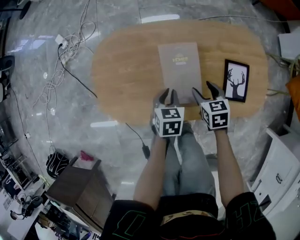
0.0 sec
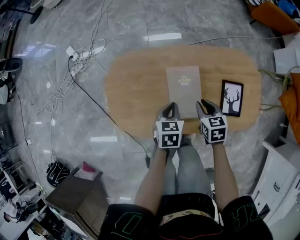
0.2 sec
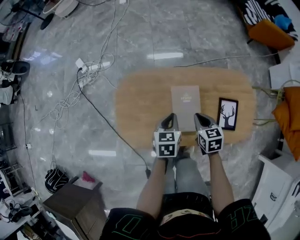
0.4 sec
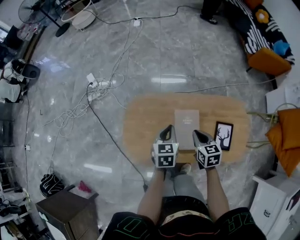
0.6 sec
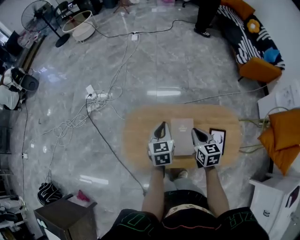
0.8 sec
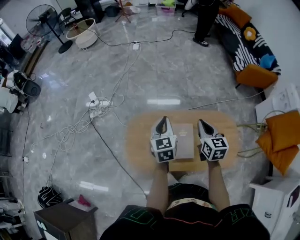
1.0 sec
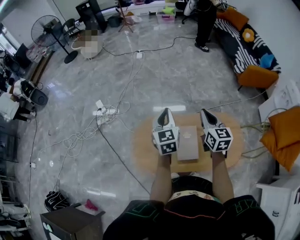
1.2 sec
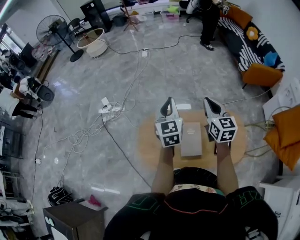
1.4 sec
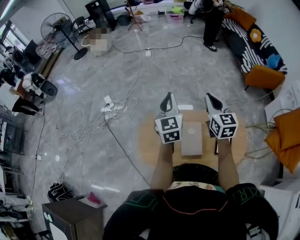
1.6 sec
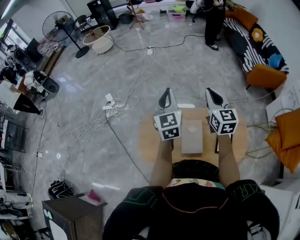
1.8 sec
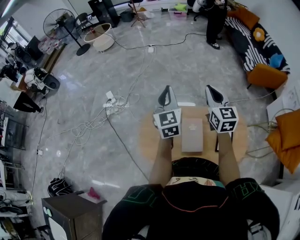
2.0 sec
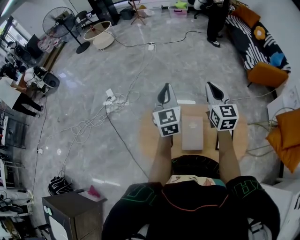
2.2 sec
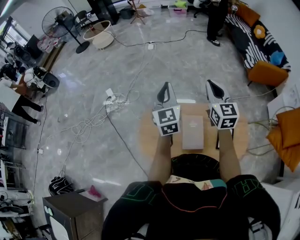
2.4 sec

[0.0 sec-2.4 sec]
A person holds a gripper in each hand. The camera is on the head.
0.0 sec to 1.2 sec: The grippers both shift upward by roughly 40 cm. The right gripper tips its fingers upward by about 40 degrees, and closes its fingers. Meanwhile the left gripper angles its fingers upward, by some 40 degrees.
1.2 sec to 2.4 sec: Both grippers travel together upward, approximately 10 cm.

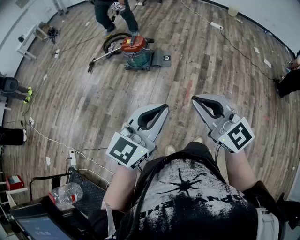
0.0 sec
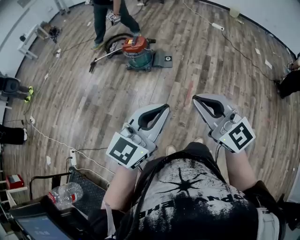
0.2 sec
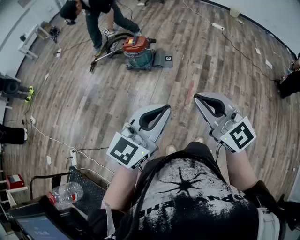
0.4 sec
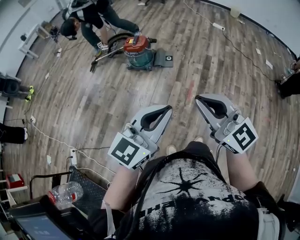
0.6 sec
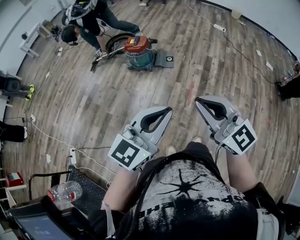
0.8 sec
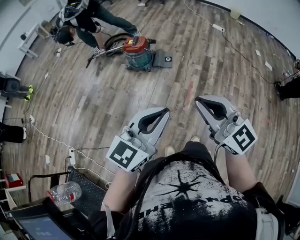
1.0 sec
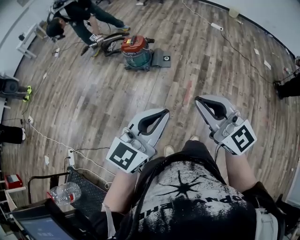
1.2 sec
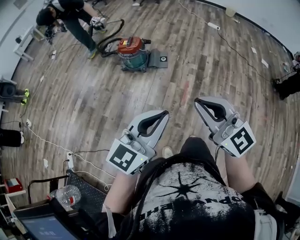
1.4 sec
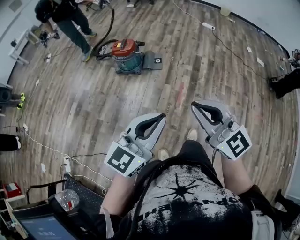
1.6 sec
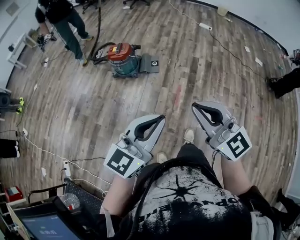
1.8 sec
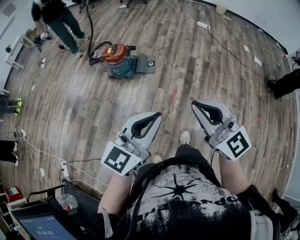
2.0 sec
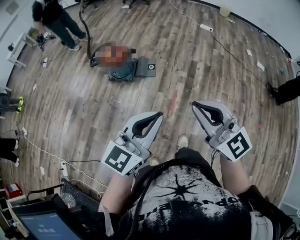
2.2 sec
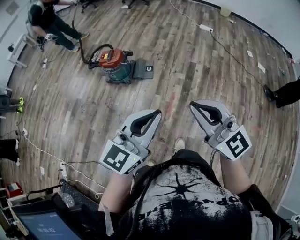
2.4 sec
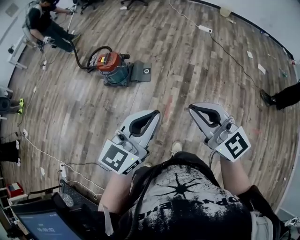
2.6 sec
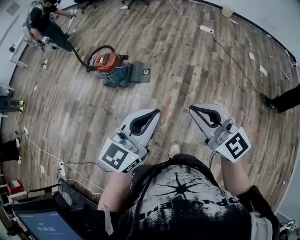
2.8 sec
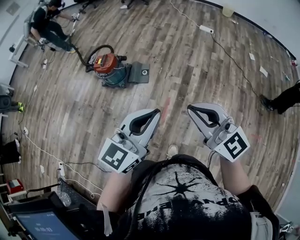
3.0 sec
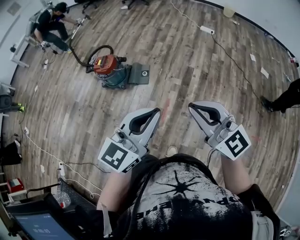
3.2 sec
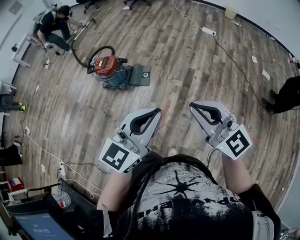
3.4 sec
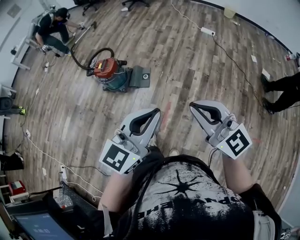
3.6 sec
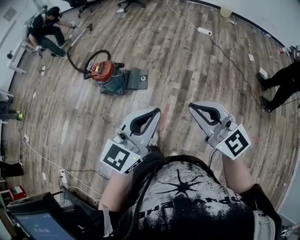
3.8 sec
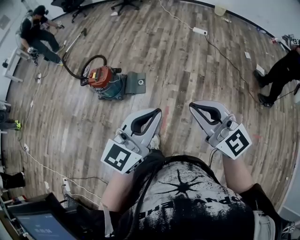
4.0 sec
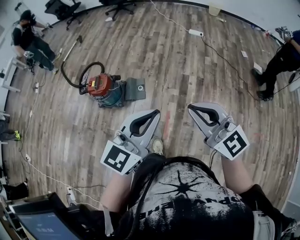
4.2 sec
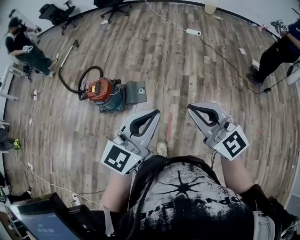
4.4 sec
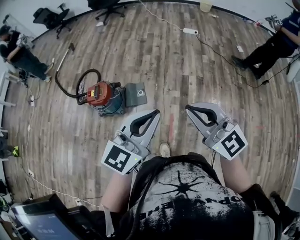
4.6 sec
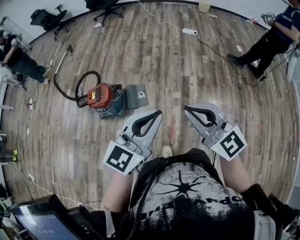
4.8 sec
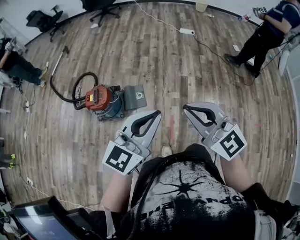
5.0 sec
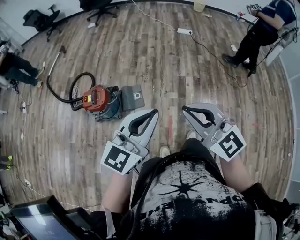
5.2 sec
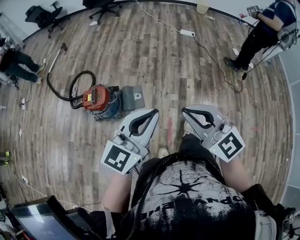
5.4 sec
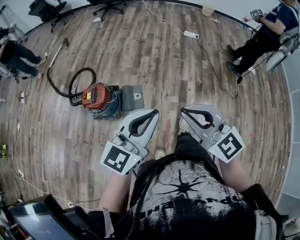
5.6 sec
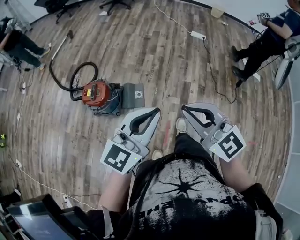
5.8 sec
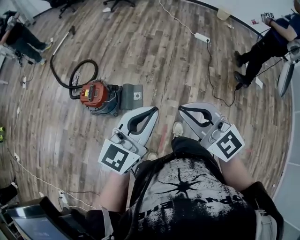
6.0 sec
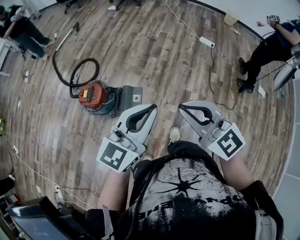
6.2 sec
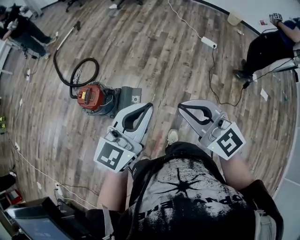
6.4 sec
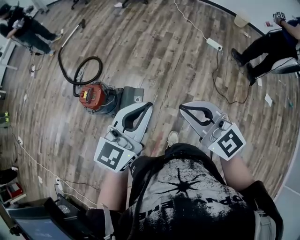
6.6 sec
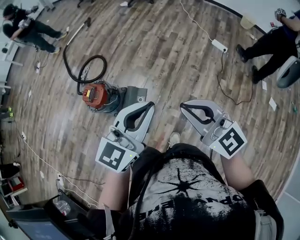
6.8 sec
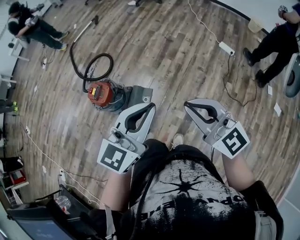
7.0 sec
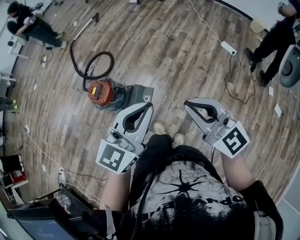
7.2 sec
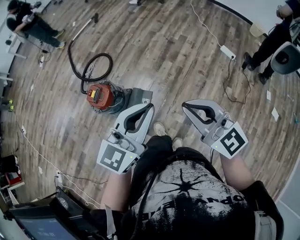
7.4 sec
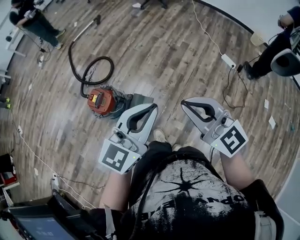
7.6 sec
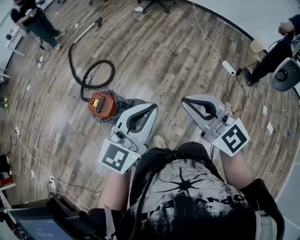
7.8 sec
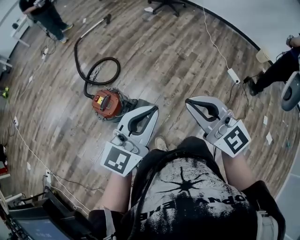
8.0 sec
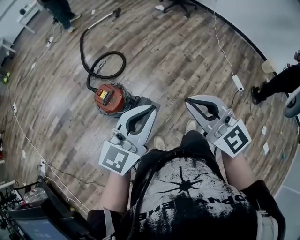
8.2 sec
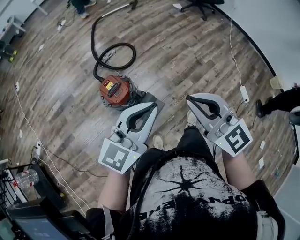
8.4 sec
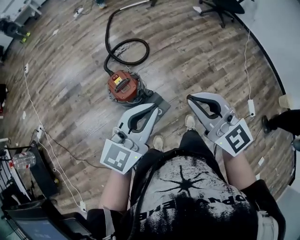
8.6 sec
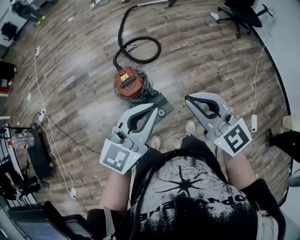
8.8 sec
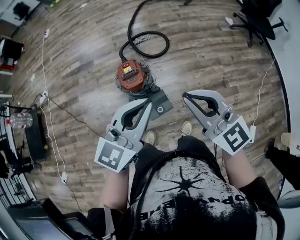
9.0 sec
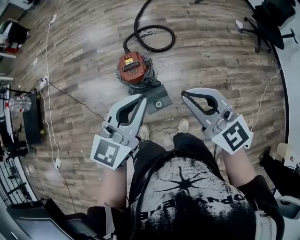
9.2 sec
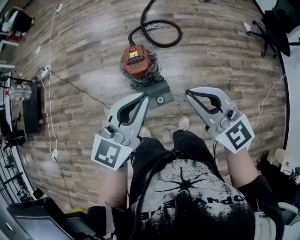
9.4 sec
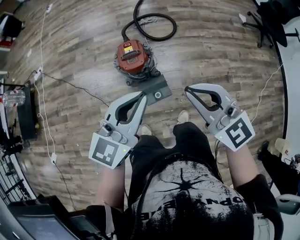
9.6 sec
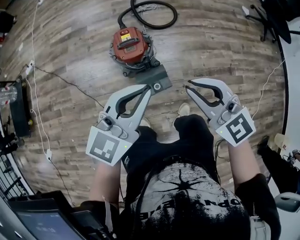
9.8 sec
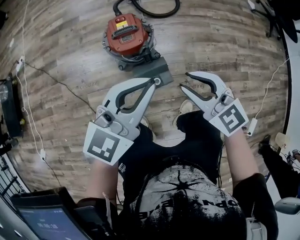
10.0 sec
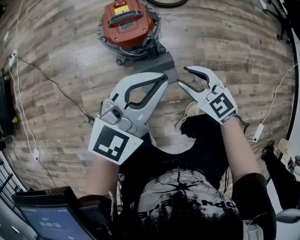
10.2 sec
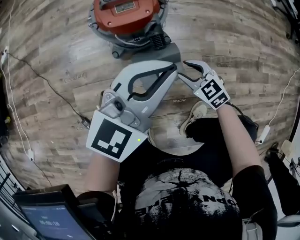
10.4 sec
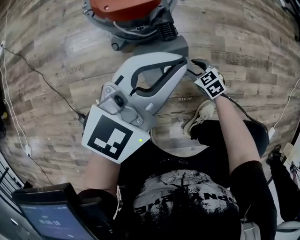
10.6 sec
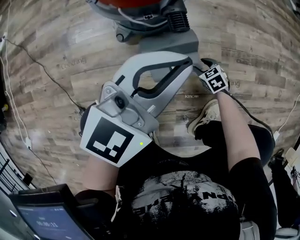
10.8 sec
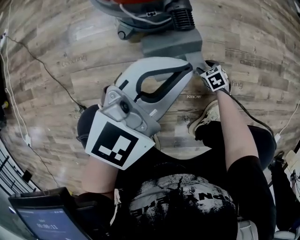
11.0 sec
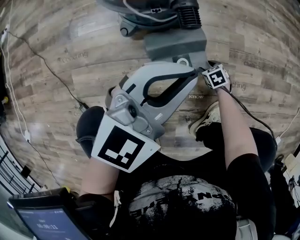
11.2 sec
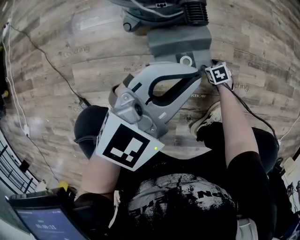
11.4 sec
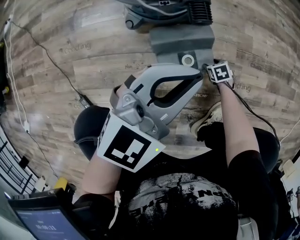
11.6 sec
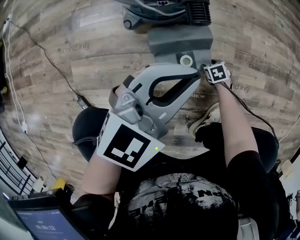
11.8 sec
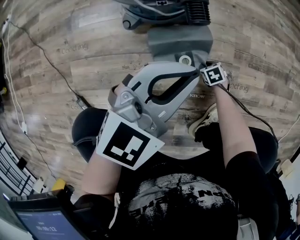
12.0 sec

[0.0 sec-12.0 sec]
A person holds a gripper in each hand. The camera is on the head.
0.0 sec to 1.6 sec: There are only small adjustments of the grippers.
1.6 sec to 3.0 sec: The left gripper moves forward and to the right, some 35 cm. Meanwhile the right gripper travels to the right and forward by some 35 cm.
3.0 sec to 4.4 sec: The grippers both shift forward by some 15 cm.
4.4 sec to 6.0 sec: The two grippers go approximately 20 cm forward.
6.0 sec to 7.6 sec: The grippers both shift forward by about 20 cm.
7.6 sec to 9.0 sec: The right gripper ends up some 25 cm from where it was, and swivels about 40 degrees, while the left gripper shifts by approximately 20 cm, and swivels about 50 degrees.
9.0 sec to 10.4 sec: The right gripper moves downward, roughly 70 cm, angles its fingers downward, by approximately 40 degrees, and opens its fingers, while the left gripper moves downward, roughly 50 cm.
10.4 sec to 12.0 sec: The right gripper travels downward by about 35 cm, tips its fingers downward by about 40 degrees, and closes up. The left gripper heads downward, covering about 15 cm.

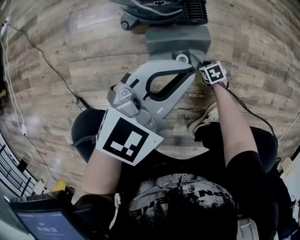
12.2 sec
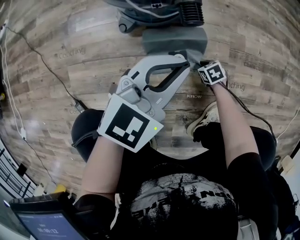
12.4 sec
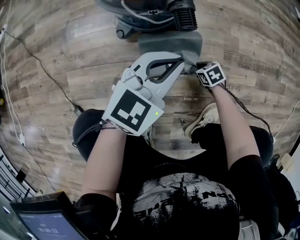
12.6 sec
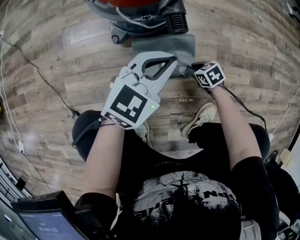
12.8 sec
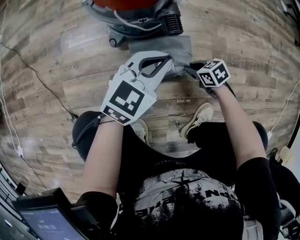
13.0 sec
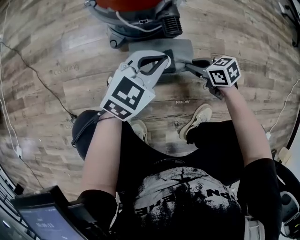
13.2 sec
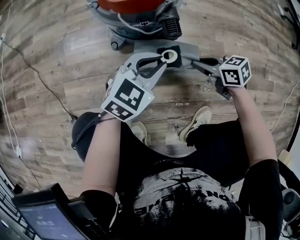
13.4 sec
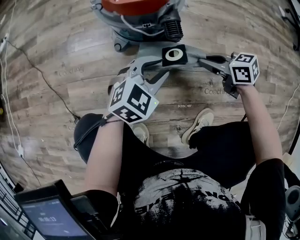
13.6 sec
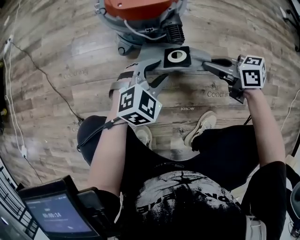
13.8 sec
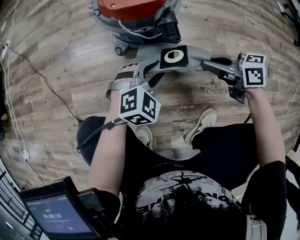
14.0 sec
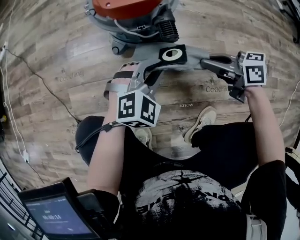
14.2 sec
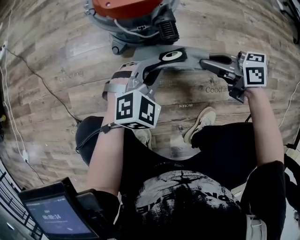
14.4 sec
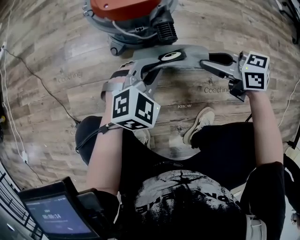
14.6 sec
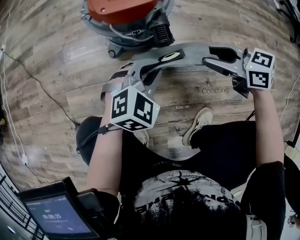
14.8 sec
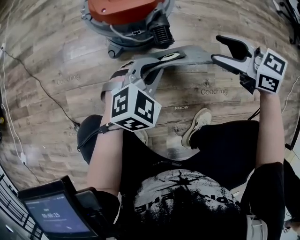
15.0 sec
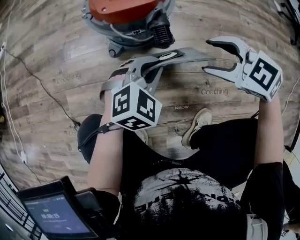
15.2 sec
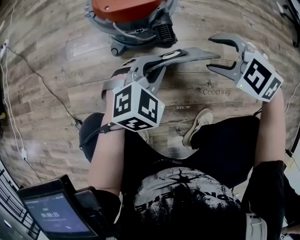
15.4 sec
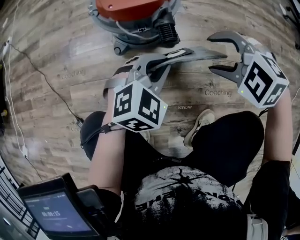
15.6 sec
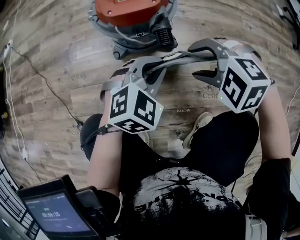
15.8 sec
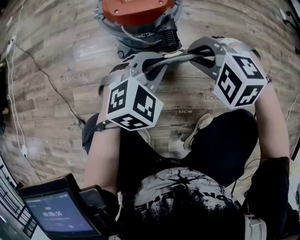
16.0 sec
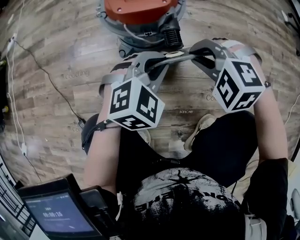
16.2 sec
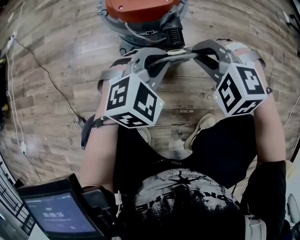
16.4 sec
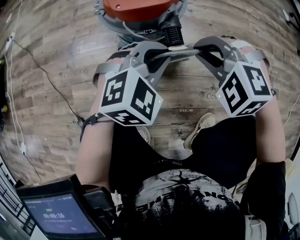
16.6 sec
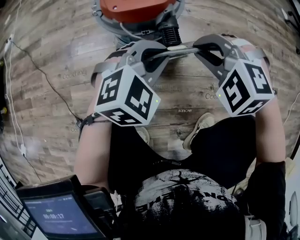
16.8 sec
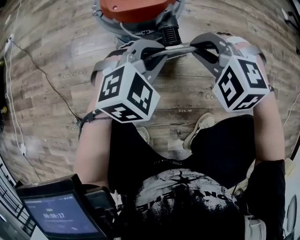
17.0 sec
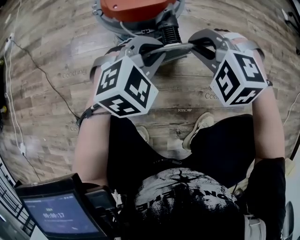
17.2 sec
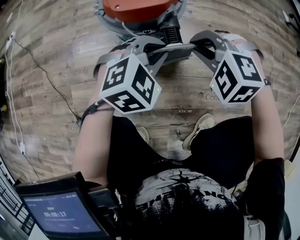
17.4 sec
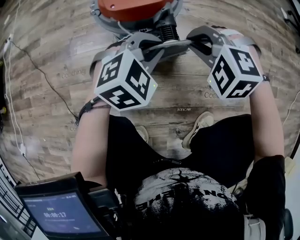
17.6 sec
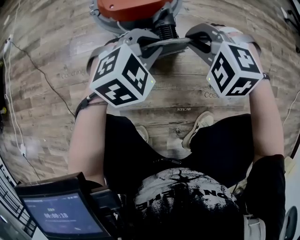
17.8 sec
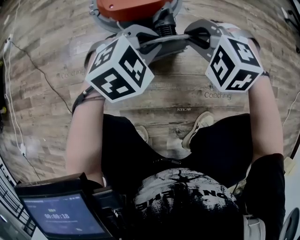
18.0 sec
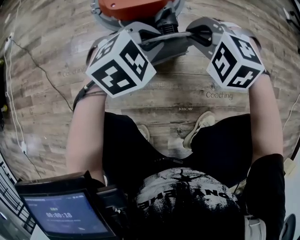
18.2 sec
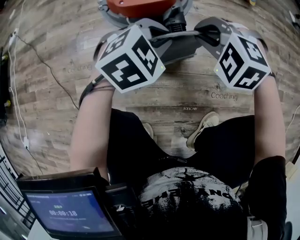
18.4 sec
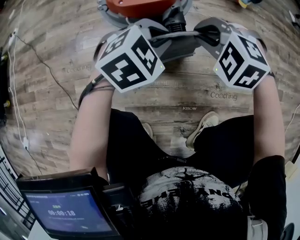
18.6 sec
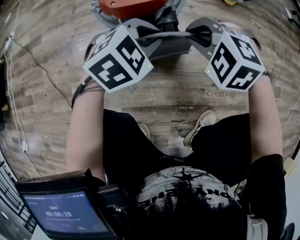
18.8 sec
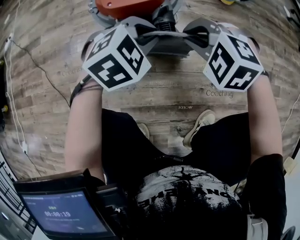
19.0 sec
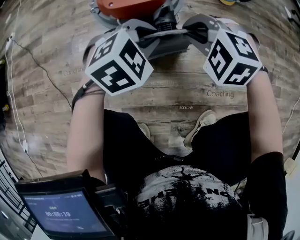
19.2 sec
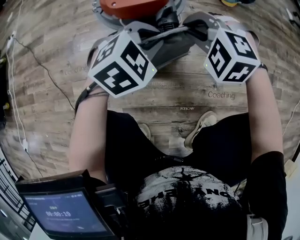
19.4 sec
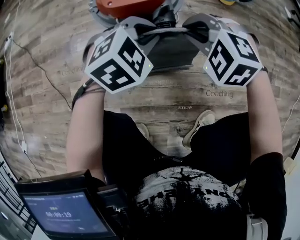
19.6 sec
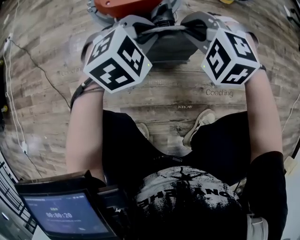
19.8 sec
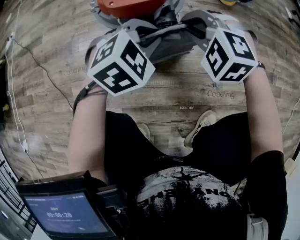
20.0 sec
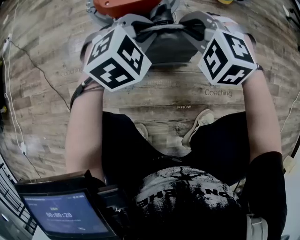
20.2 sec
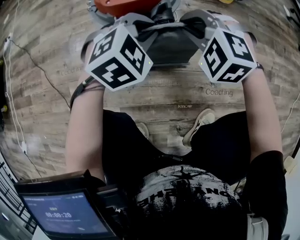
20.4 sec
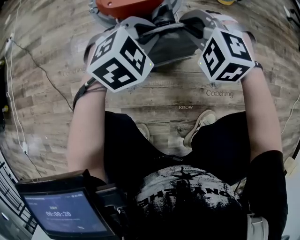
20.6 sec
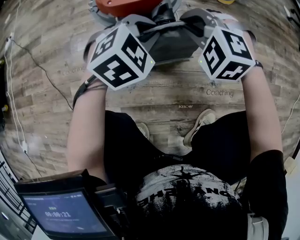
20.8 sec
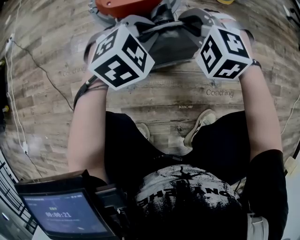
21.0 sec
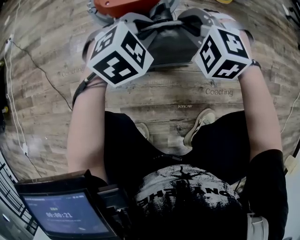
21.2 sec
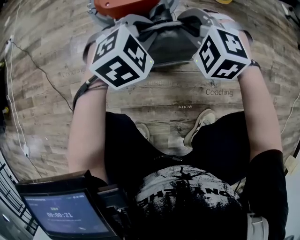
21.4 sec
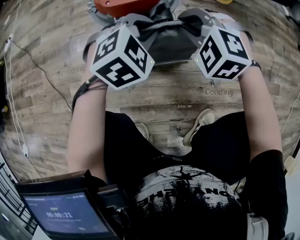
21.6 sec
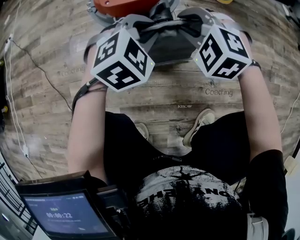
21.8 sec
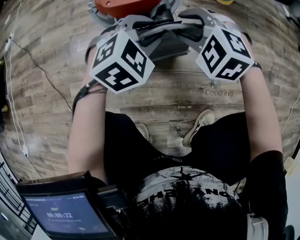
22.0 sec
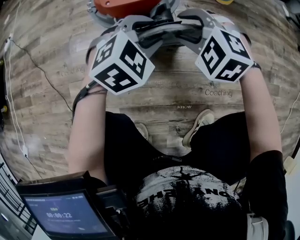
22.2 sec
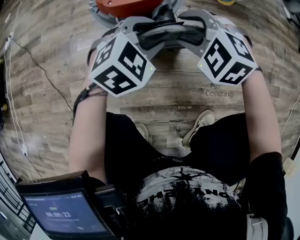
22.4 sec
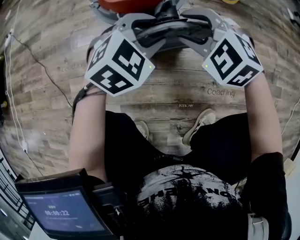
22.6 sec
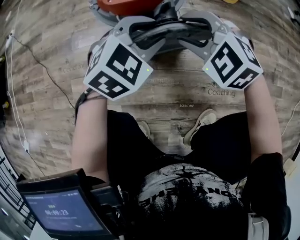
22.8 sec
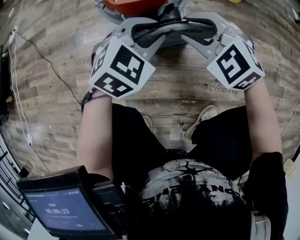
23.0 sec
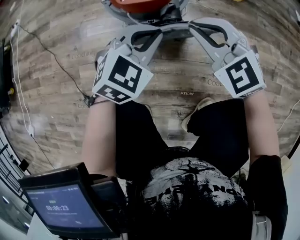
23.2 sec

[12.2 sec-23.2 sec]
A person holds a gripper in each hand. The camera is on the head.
12.2 sec to 13.8 sec: The right gripper goes approximately 30 cm upward, and points its fingers approximately 50 degrees further upward; the left gripper travels downward by some 10 cm, turns by roughly 30 degrees, and opens.
13.8 sec to 15.4 sec: The grippers both shift upward by some 5 cm. The right gripper rotates around the line of its fingers by roughly 60 degrees, counterclockwise from behind, and opens, while the left gripper closes.
15.4 sec to 17.0 sec: The right gripper moves to the left, roughly 5 cm, rotates approximately 20 degrees, and closes.
17.0 sec to 18.4 sec: There are only small adjustments of the grippers.
18.4 sec to 21.6 sec: The grippers move only a little.
21.6 sec to 23.2 sec: The left gripper moves about 5 cm, and opens and closes again, while the right gripper travels upward by roughly 5 cm, changes its angle by about 20 degrees, and opens, then closes again.
